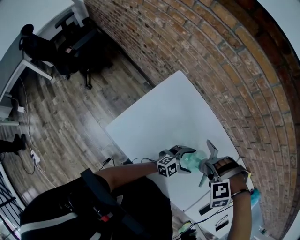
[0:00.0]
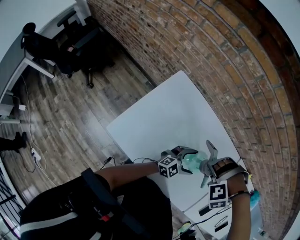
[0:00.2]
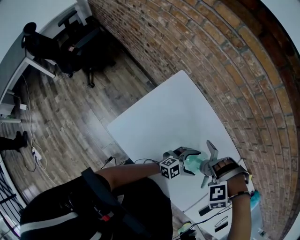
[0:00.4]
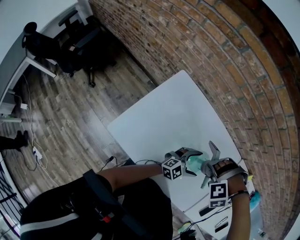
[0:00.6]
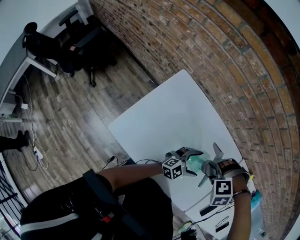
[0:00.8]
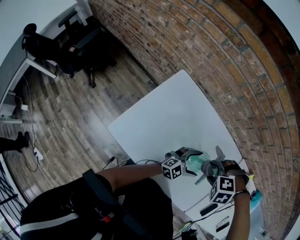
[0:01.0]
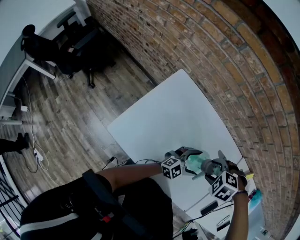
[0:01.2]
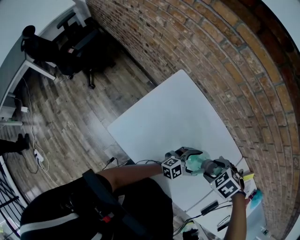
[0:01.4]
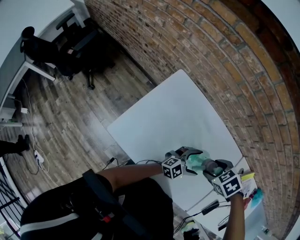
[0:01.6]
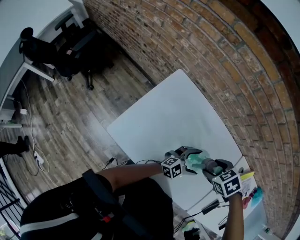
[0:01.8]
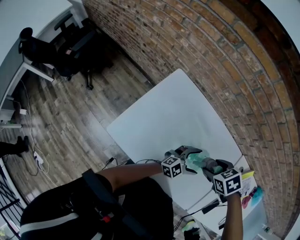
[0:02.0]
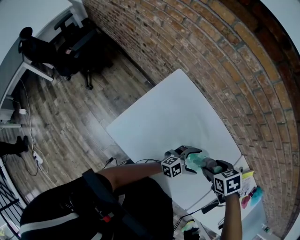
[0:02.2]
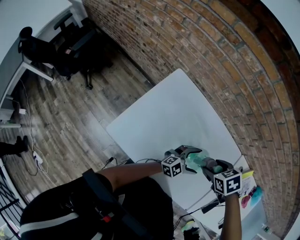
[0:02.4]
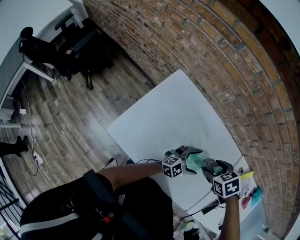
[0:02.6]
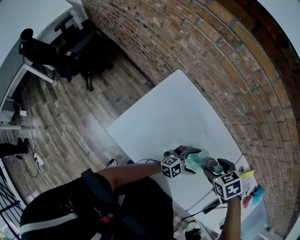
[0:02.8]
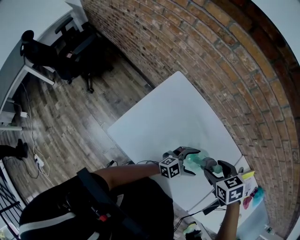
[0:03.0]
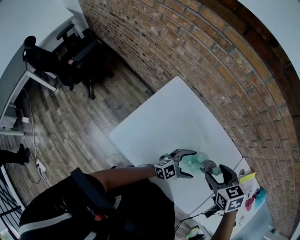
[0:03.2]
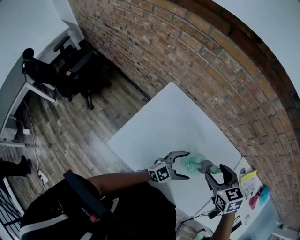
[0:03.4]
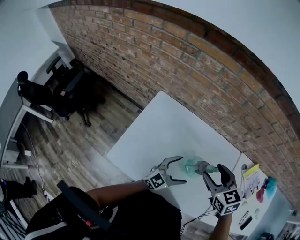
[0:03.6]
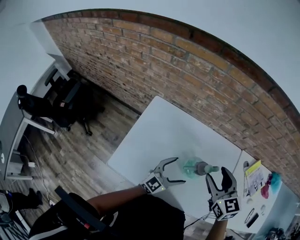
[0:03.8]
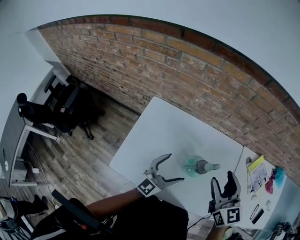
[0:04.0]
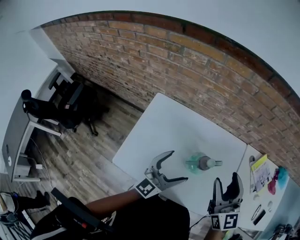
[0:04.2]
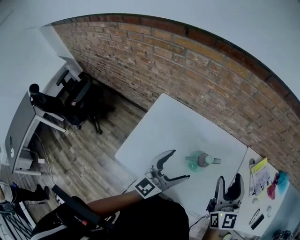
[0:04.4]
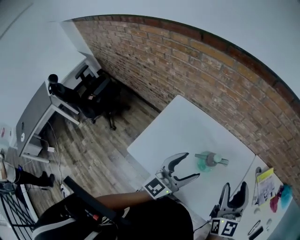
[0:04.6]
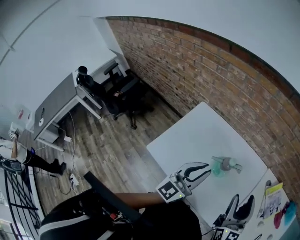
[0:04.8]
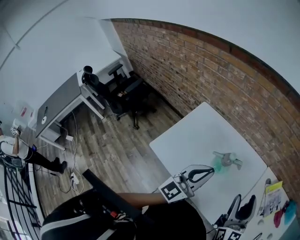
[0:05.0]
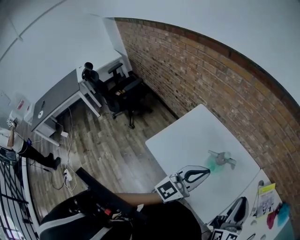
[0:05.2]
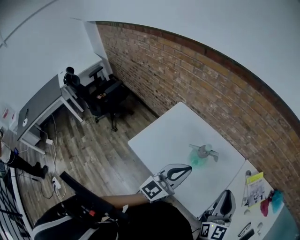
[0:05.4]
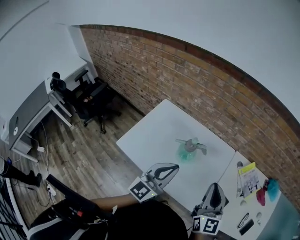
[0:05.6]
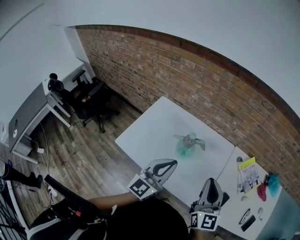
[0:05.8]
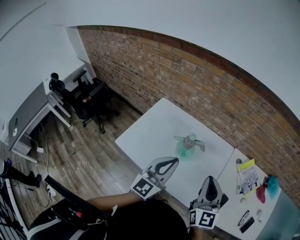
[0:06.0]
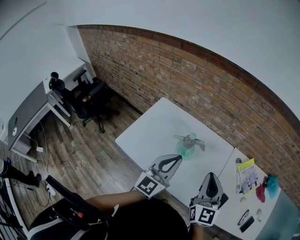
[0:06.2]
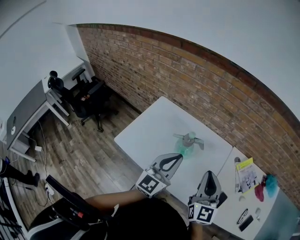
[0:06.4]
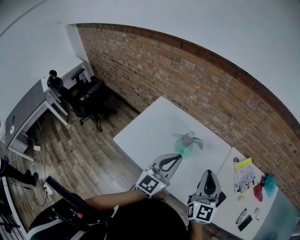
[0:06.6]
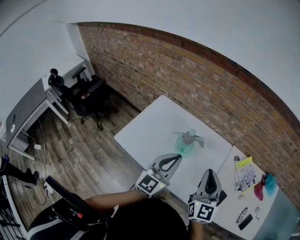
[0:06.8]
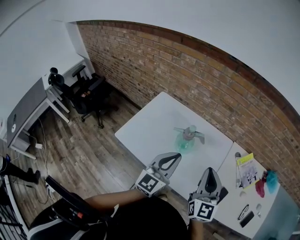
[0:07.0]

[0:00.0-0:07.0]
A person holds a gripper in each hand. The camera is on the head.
0:00.0 to 0:01.4: The right gripper rolls clockwise, seen from behind, by about 60 degrees.
0:01.4 to 0:02.8: The right gripper changes its angle by some 30 degrees.
0:02.8 to 0:04.2: The grippers both shift upward by some 20 cm. The right gripper points its fingers approximately 70 degrees further upward. Meanwhile the left gripper swivels about 30 degrees.
0:04.2 to 0:05.6: The right gripper travels backward and to the right by approximately 20 cm, and closes its fingers; the left gripper moves backward, upward and to the right, some 20 cm, and closes.
0:05.6 to 0:07.0: The grippers make only small movements.

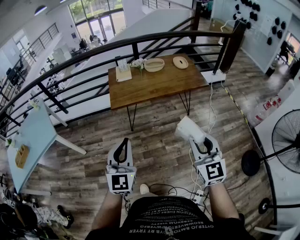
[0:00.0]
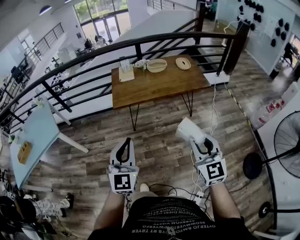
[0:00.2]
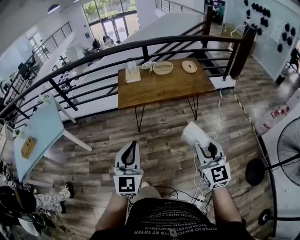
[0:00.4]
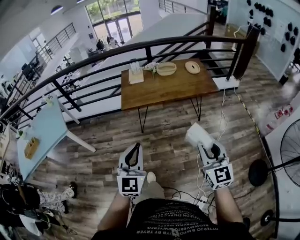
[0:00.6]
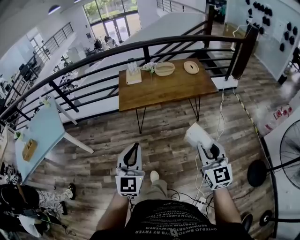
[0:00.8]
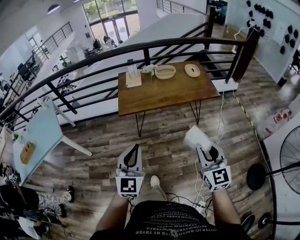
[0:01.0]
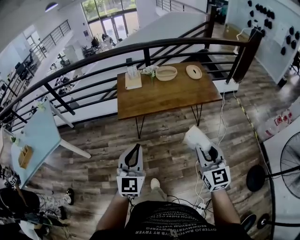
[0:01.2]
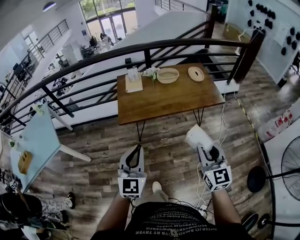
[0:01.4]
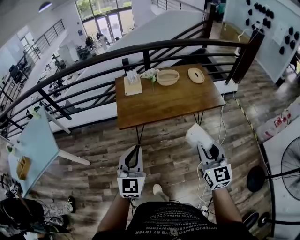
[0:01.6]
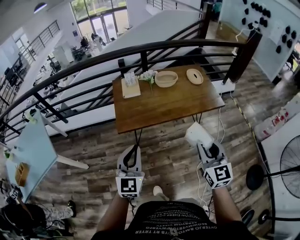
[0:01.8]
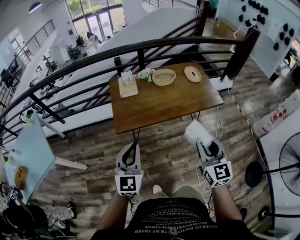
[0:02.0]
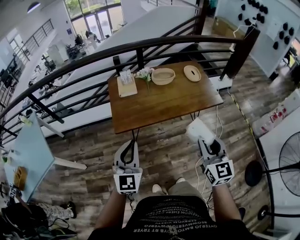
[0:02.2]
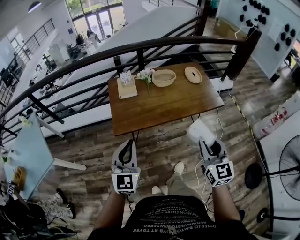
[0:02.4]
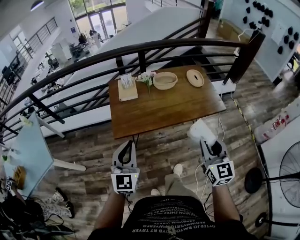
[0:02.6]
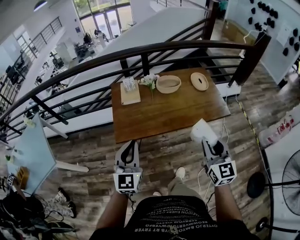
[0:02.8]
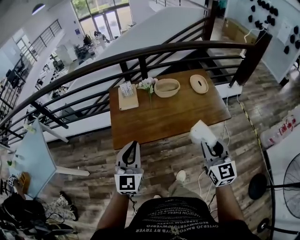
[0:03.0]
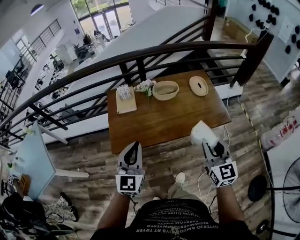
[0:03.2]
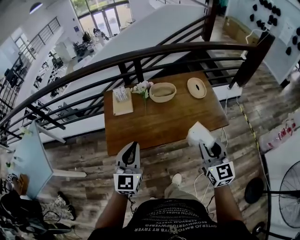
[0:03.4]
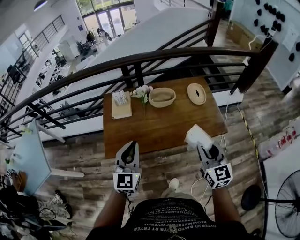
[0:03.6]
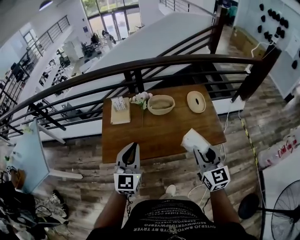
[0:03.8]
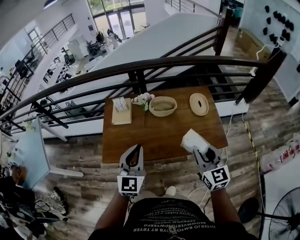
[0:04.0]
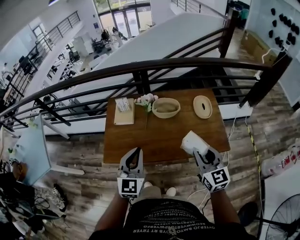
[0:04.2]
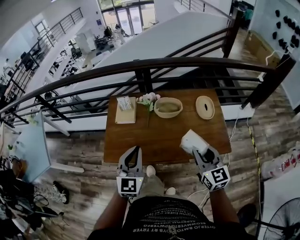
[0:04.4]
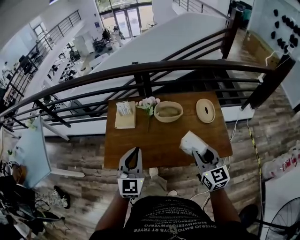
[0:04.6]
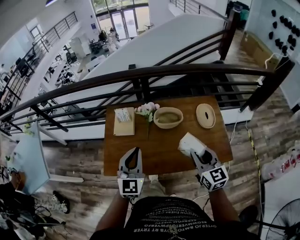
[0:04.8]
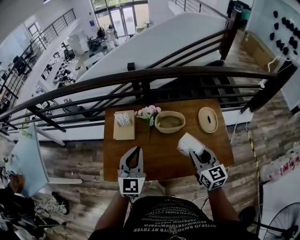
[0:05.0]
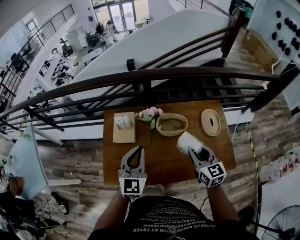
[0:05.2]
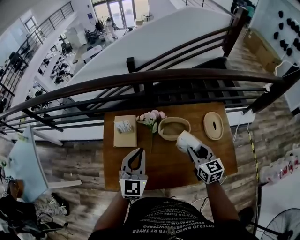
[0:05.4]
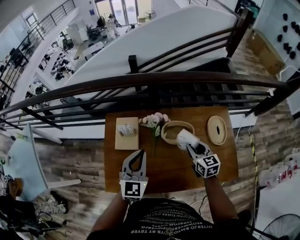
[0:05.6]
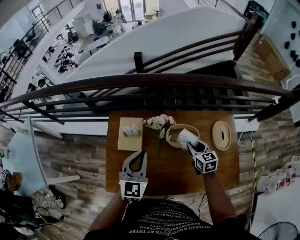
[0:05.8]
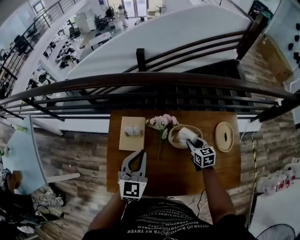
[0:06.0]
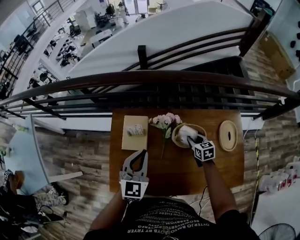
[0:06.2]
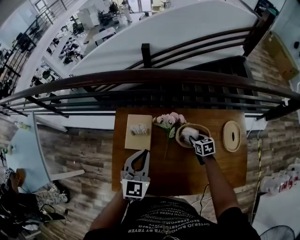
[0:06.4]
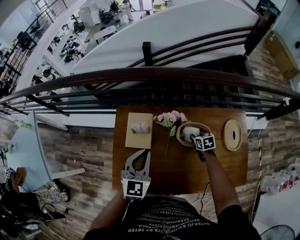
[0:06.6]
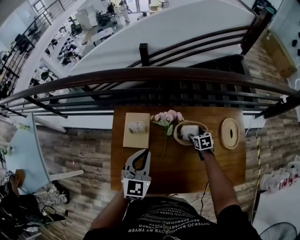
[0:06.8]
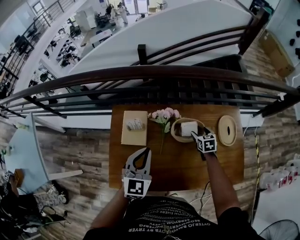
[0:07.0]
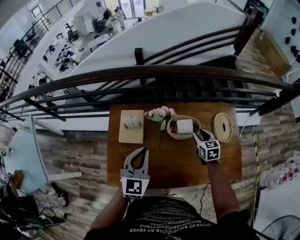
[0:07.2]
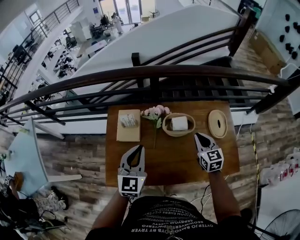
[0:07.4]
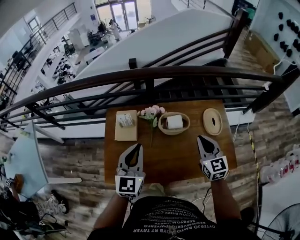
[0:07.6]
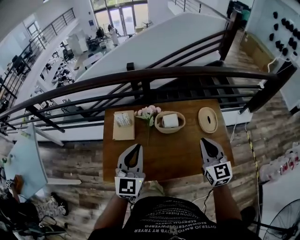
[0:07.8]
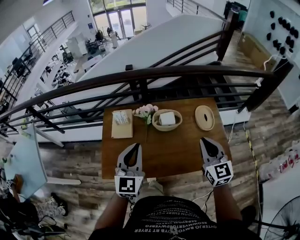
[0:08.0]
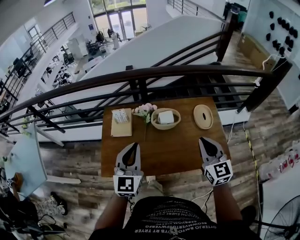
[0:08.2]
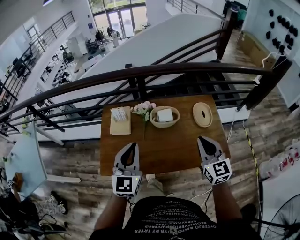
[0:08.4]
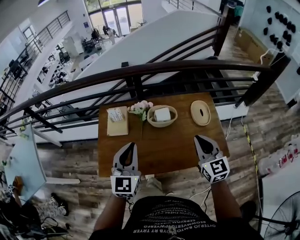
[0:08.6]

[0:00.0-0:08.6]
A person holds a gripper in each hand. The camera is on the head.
0:00.0 to 0:01.4: The grippers both shift forward by approximately 15 cm.
0:01.4 to 0:02.8: The two grippers go approximately 20 cm forward.
0:02.8 to 0:04.4: Both grippers travel together forward and to the right, approximately 25 cm.
0:04.4 to 0:05.8: The right gripper is displaced forward and downward by approximately 35 cm, and rotates approximately 20 degrees, while the left gripper moves forward, about 25 cm.
0:05.8 to 0:07.2: The right gripper moves approximately 15 cm downward and comes back, and opens and closes again.
0:07.2 to 0:08.6: The left gripper heads backward, upward and to the right, covering approximately 15 cm; the right gripper travels upward and backward by some 30 cm, rotates some 30 degrees, and closes its fingers.

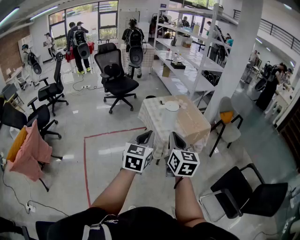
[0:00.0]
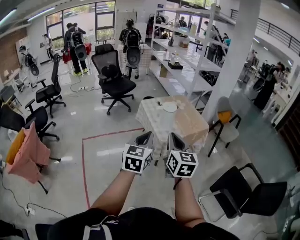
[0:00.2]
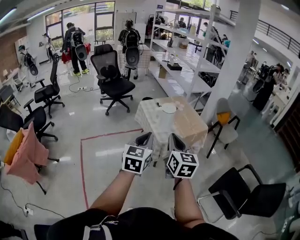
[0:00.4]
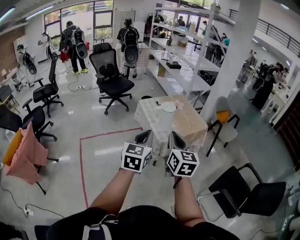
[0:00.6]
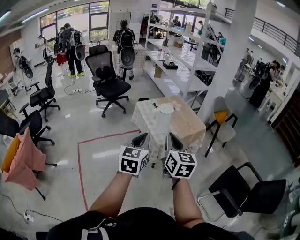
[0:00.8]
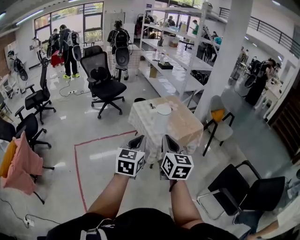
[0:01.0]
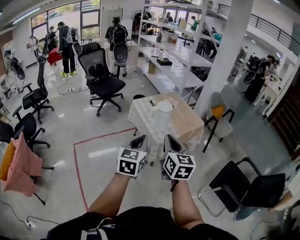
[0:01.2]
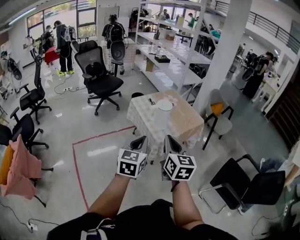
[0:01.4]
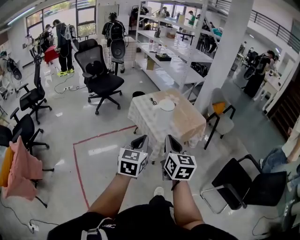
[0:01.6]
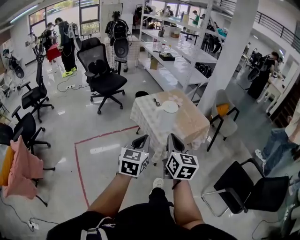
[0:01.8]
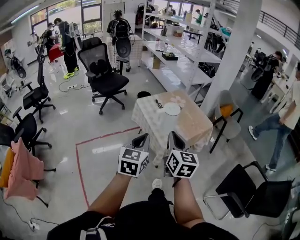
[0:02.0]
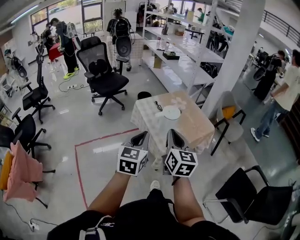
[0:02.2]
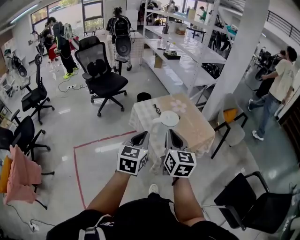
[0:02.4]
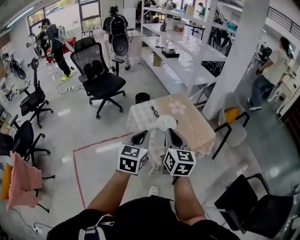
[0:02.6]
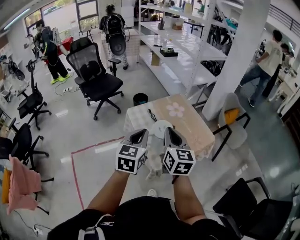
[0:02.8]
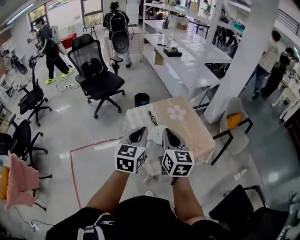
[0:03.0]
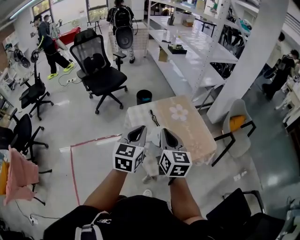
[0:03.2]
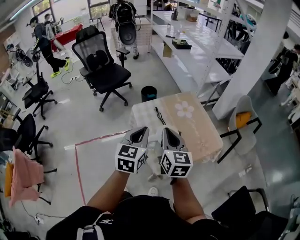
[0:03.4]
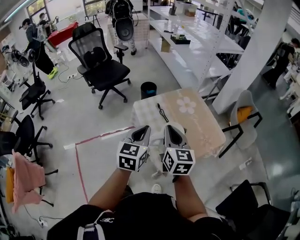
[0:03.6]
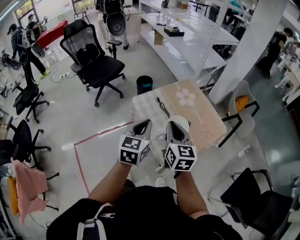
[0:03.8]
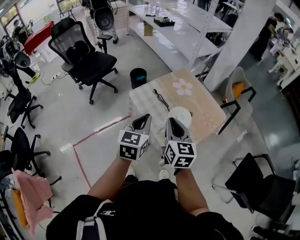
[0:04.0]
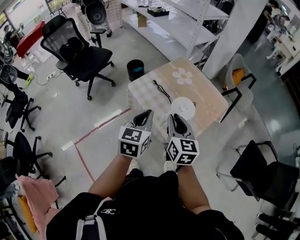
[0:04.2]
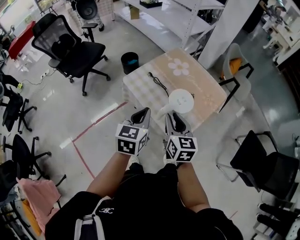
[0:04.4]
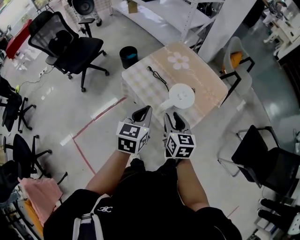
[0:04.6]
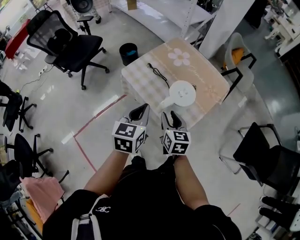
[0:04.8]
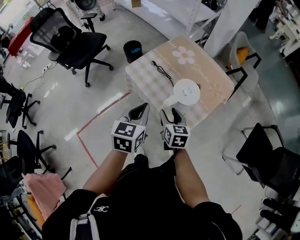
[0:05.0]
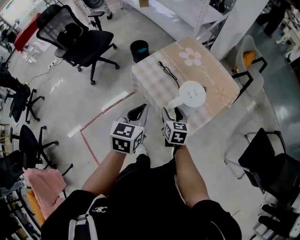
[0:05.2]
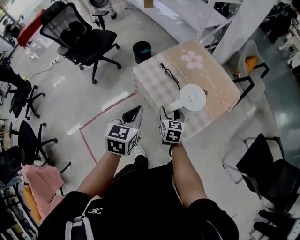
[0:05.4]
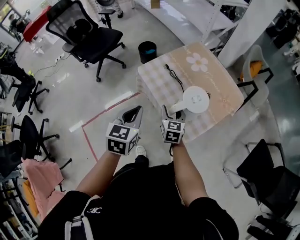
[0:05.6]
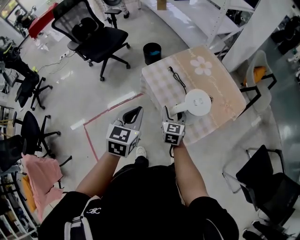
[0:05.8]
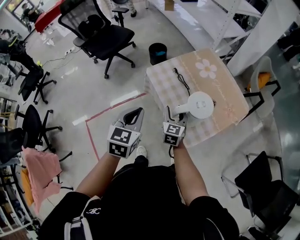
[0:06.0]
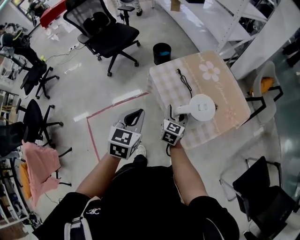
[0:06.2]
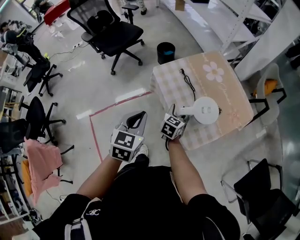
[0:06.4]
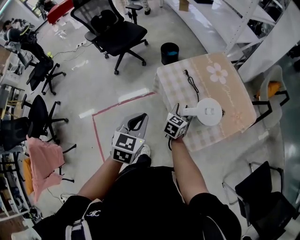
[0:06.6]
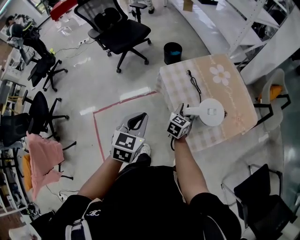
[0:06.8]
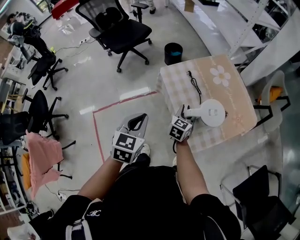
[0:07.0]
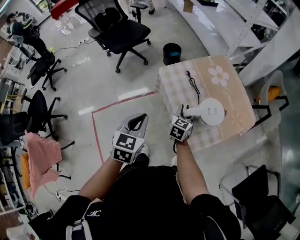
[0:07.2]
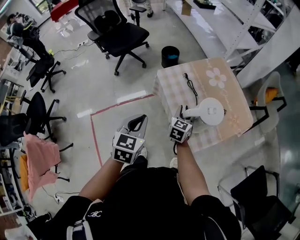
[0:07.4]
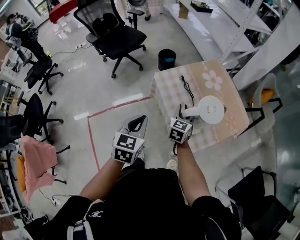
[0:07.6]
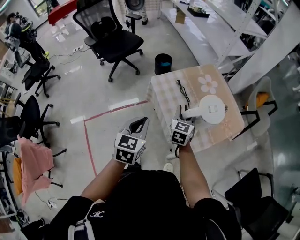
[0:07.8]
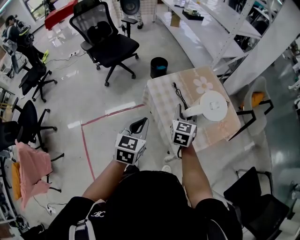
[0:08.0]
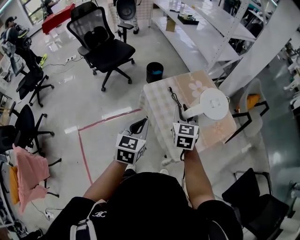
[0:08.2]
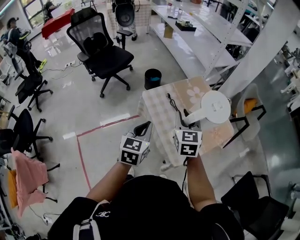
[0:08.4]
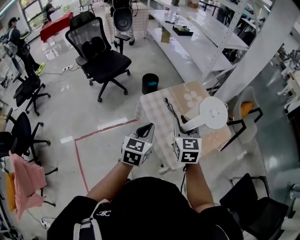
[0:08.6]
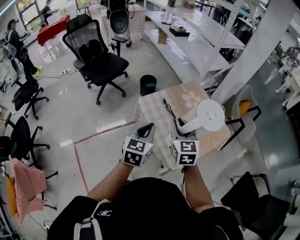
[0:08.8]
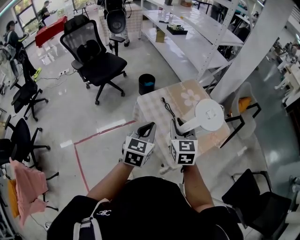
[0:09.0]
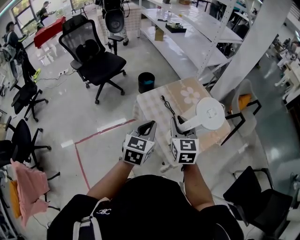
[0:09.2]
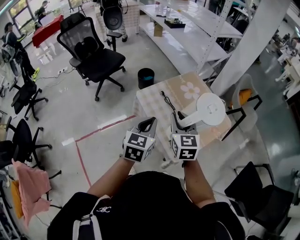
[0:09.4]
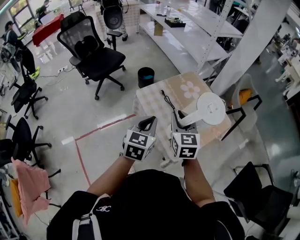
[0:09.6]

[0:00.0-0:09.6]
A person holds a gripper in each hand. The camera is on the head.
0:00.0 to 0:01.6: The right gripper heads forward and to the left, covering roughly 10 cm. Meanwhile the left gripper heads forward, downward and to the left, covering roughly 10 cm.
0:01.6 to 0:03.2: Both grippers travel together forward, roughly 40 cm.
0:03.2 to 0:04.8: The right gripper heads downward, covering approximately 20 cm, changes its angle by some 30 degrees, and opens. The left gripper moves downward and to the left, approximately 15 cm, and rotates roughly 30 degrees.
0:04.8 to 0:06.4: The left gripper goes some 5 cm to the left; the right gripper heads forward and downward, covering about 15 cm.
0:06.4 to 0:08.0: The right gripper shifts roughly 15 cm upward, turns by about 20 degrees, and closes its fingers.
0:08.0 to 0:09.6: The right gripper shifts roughly 10 cm upward and backward, while the left gripper is displaced to the right by some 5 cm.
